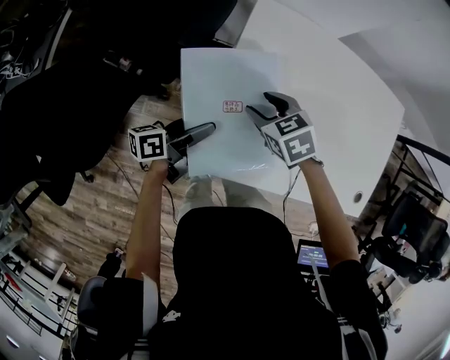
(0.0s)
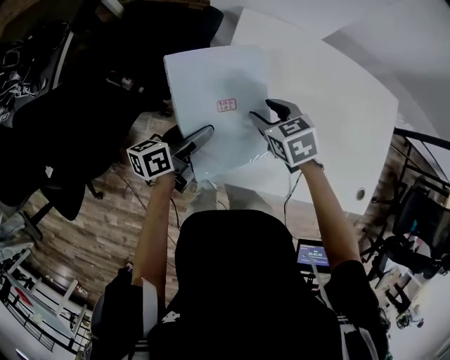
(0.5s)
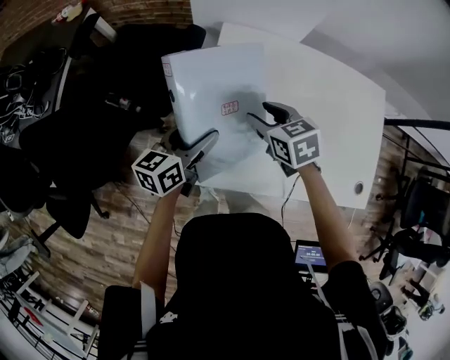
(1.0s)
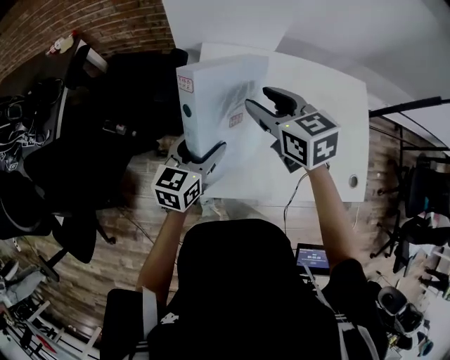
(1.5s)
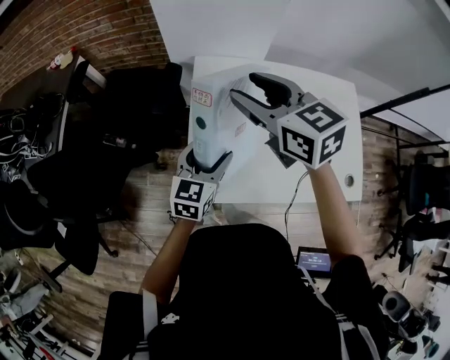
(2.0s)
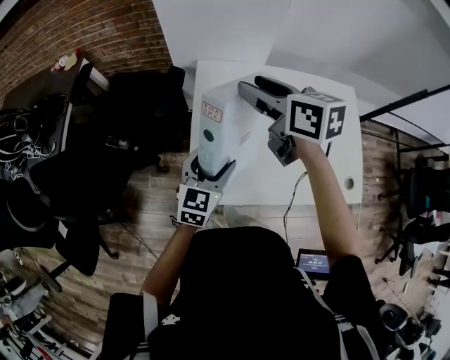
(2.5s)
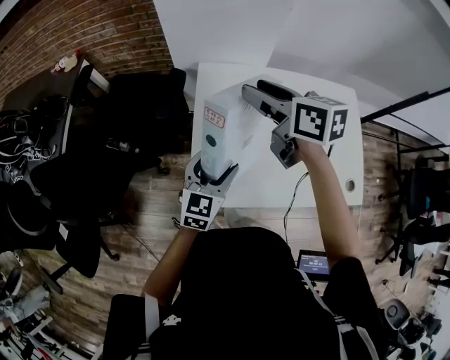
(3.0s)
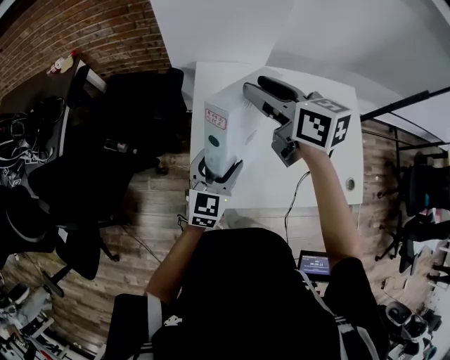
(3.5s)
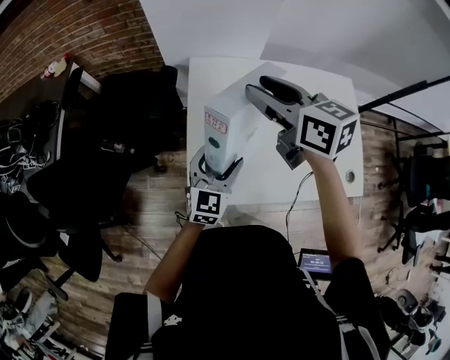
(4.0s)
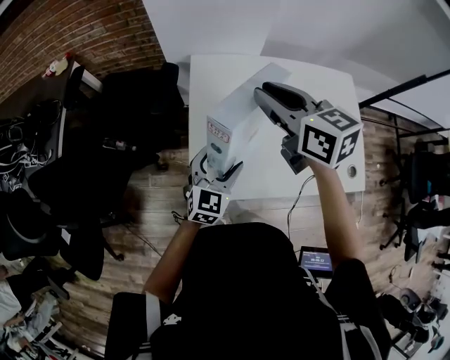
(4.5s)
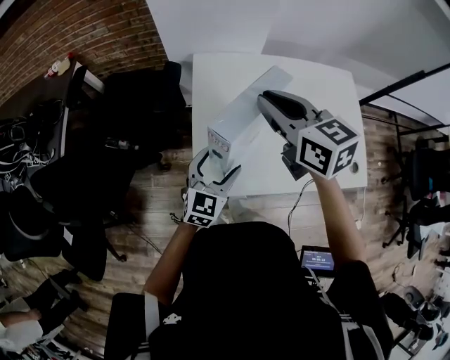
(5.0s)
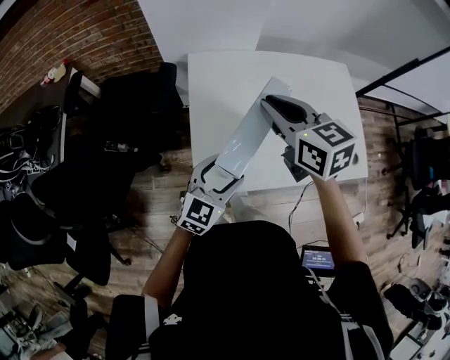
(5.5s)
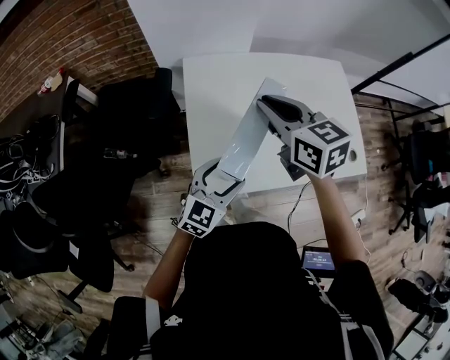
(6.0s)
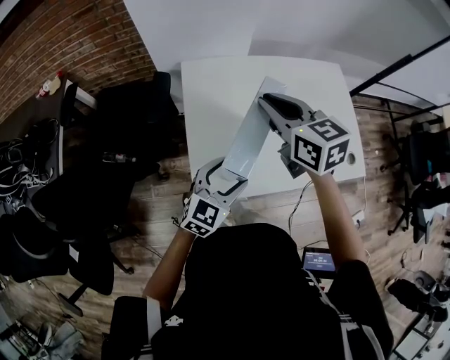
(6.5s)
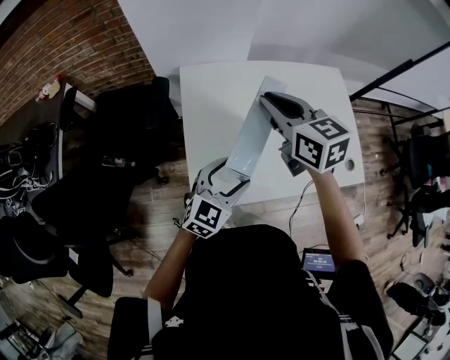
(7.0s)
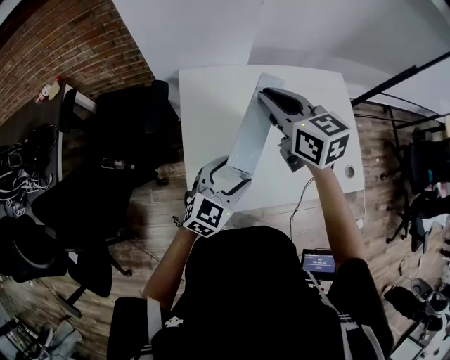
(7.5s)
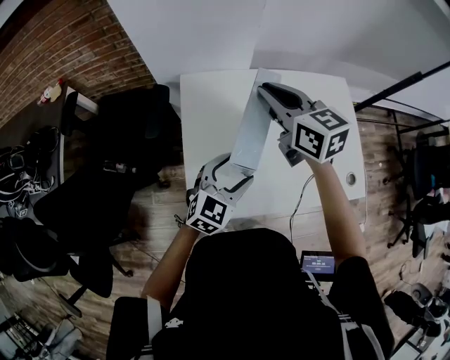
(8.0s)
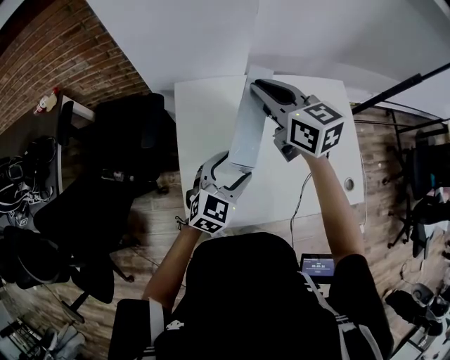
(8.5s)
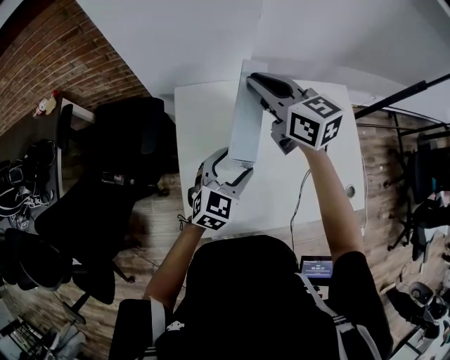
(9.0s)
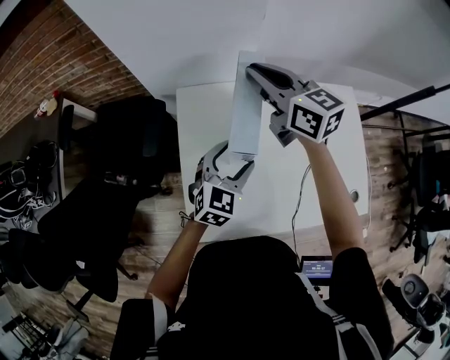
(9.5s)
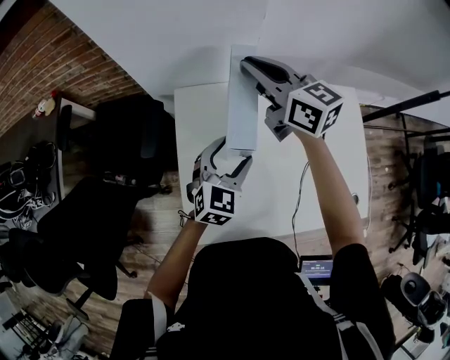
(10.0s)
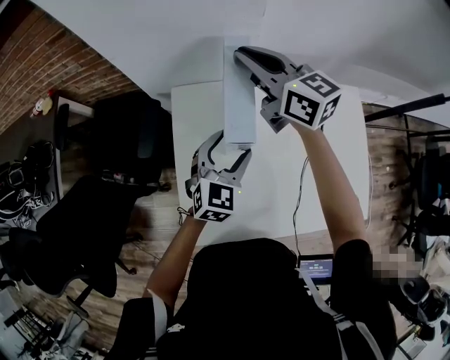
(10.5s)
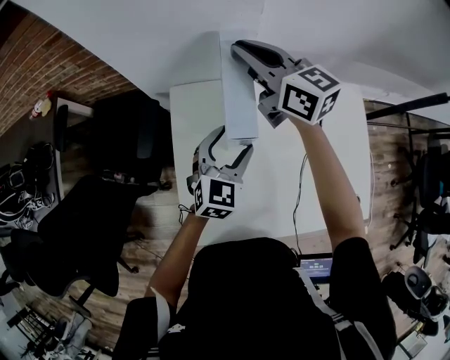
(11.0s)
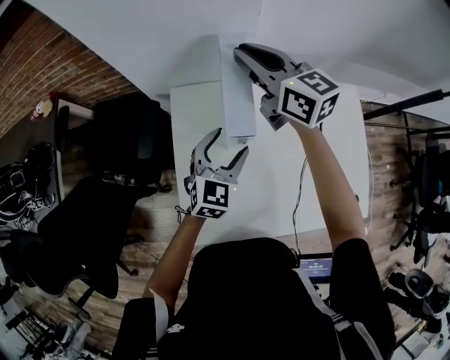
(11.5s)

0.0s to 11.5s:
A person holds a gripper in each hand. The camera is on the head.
0.0s to 2.0s: The left gripper is displaced upward and to the right by roughly 20 cm, and rotates around the line of its fingers by approximately 60 degrees, clockwise from behind. The right gripper shifts some 30 cm upward, and tilts its fingers some 40 degrees upward.
4.0s to 6.0s: The grippers both shift backward by approximately 10 cm. The left gripper swivels approximately 20 degrees; the right gripper closes its fingers.
6.0s to 7.5s: Both grippers move forward, approximately 10 cm.
7.5s to 9.5s: The two grippers go about 15 cm forward.
9.5s to 11.5s: Both grippers move forward, some 5 cm.

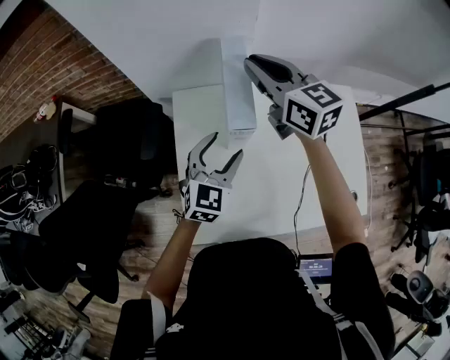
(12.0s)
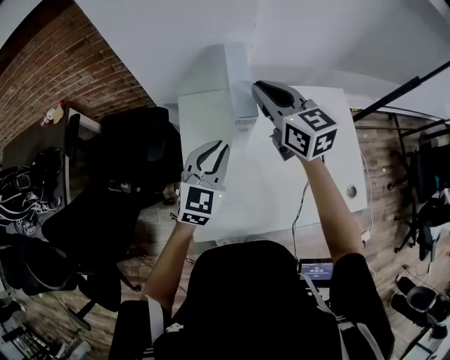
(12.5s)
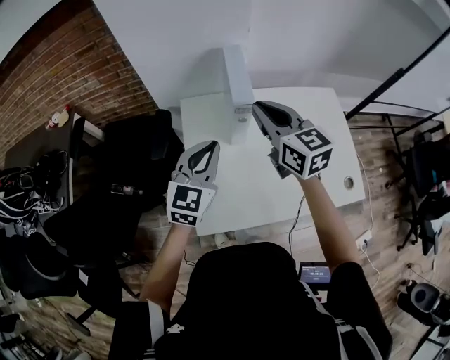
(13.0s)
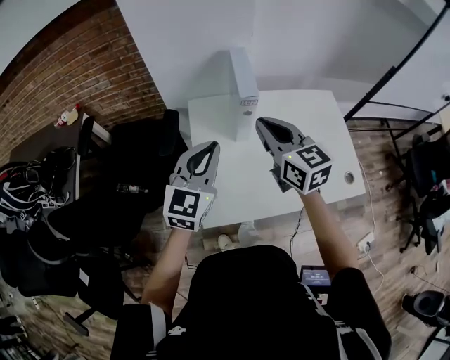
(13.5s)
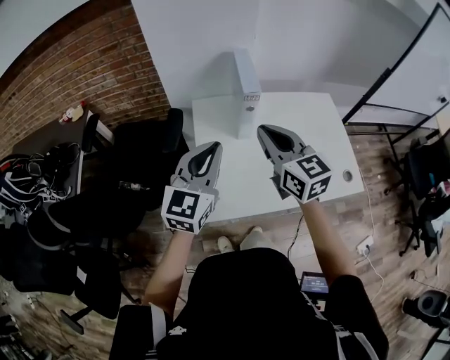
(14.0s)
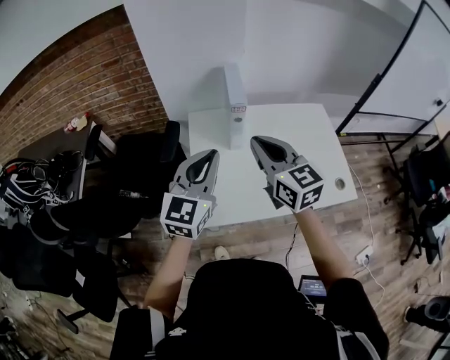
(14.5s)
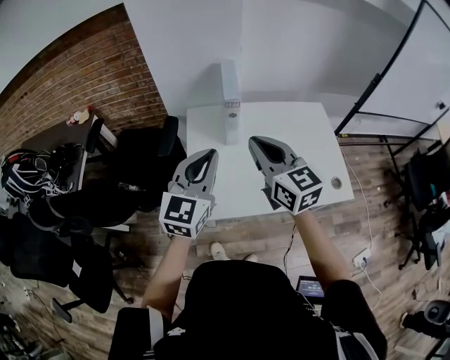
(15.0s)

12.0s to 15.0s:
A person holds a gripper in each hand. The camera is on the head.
12.0s to 13.5s: The right gripper heads backward, covering some 25 cm; the left gripper heads backward, upward and to the left, covering approximately 25 cm, and closes its fingers.
13.5s to 15.0s: The left gripper is displaced backward and upward by approximately 10 cm; the right gripper moves backward, about 10 cm.

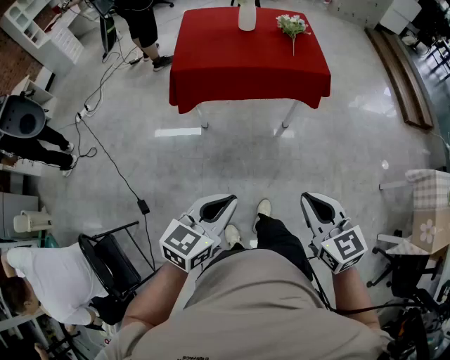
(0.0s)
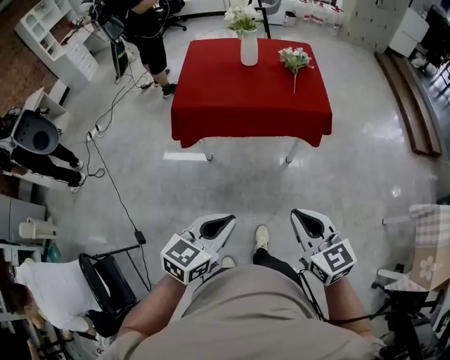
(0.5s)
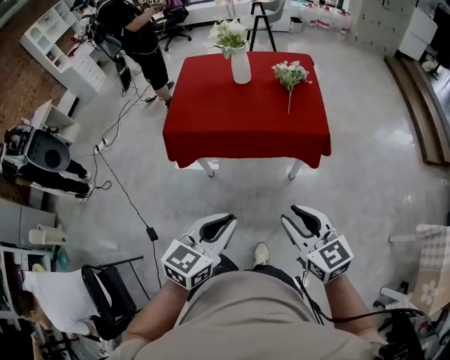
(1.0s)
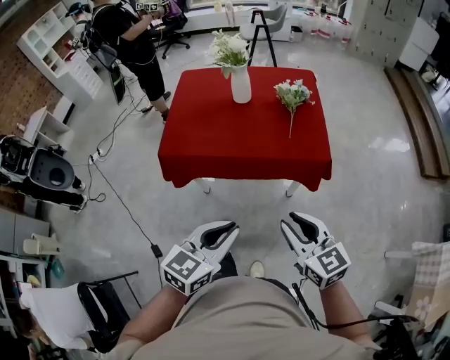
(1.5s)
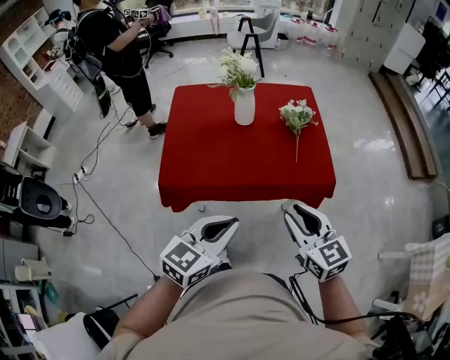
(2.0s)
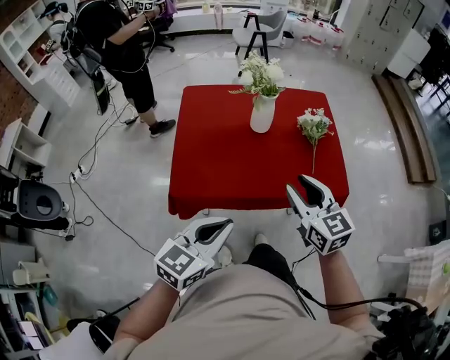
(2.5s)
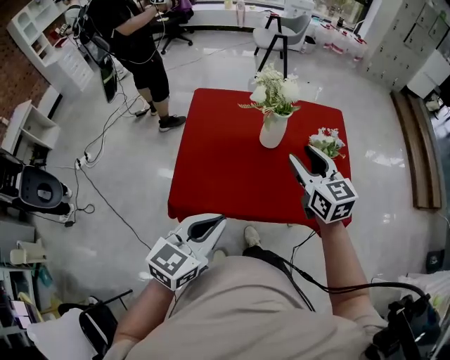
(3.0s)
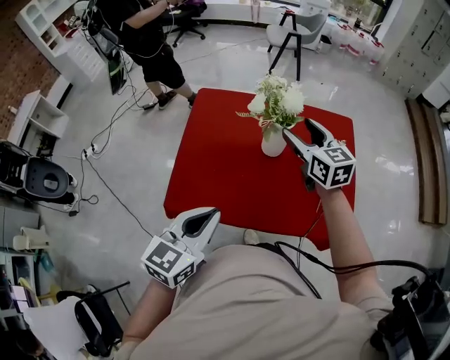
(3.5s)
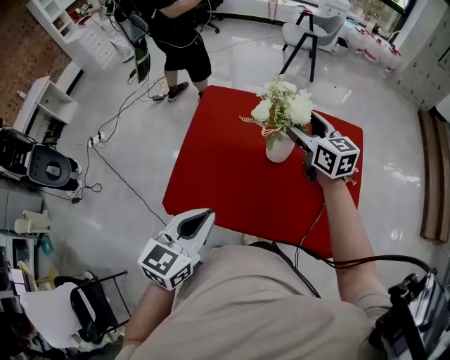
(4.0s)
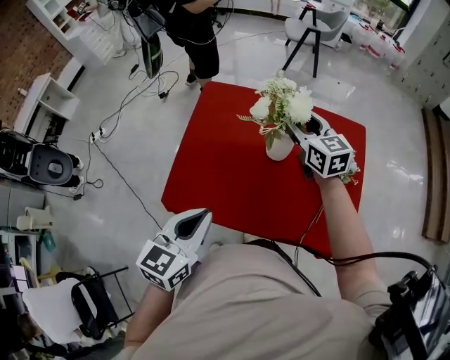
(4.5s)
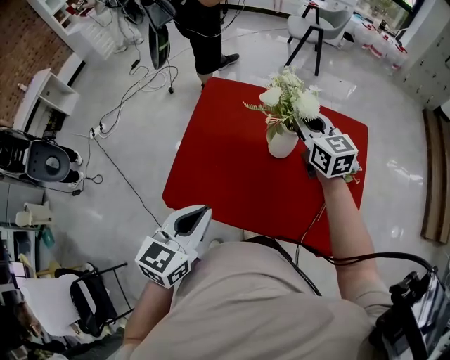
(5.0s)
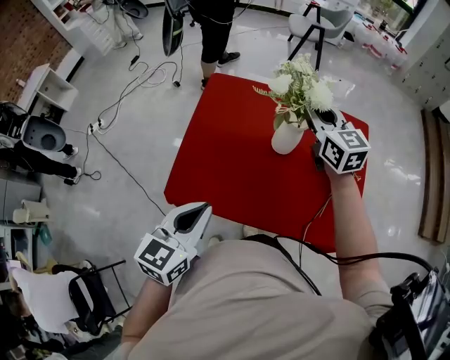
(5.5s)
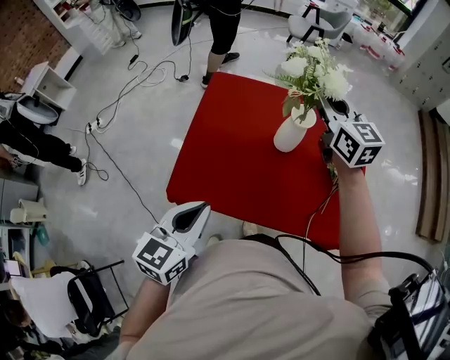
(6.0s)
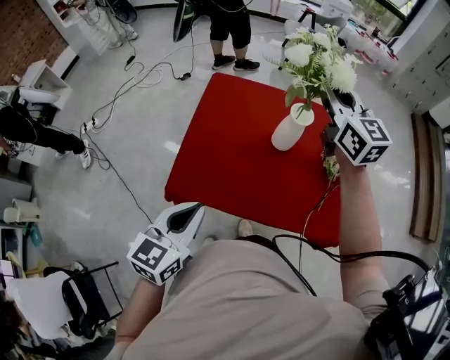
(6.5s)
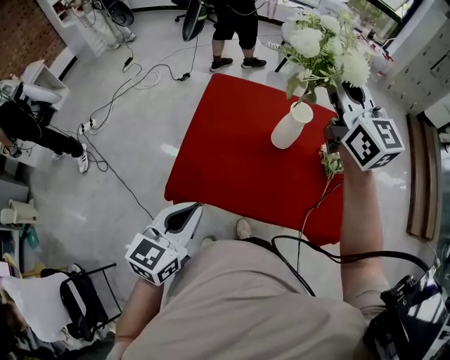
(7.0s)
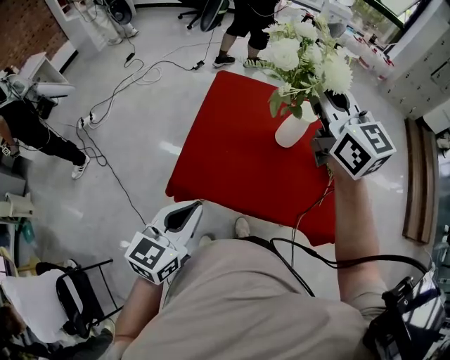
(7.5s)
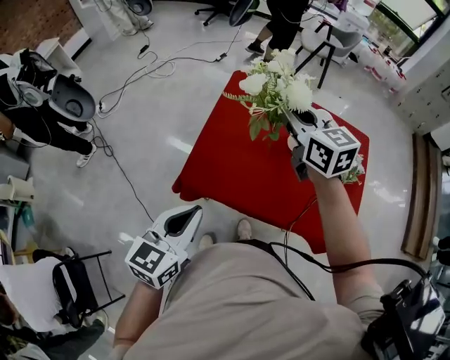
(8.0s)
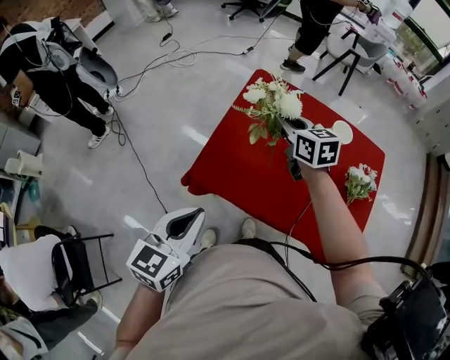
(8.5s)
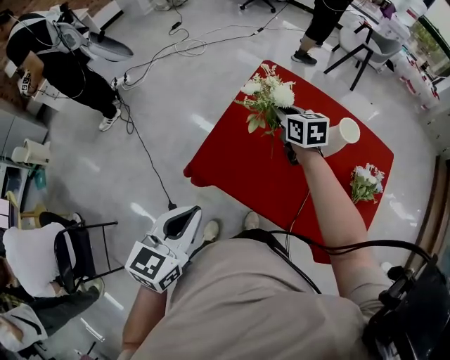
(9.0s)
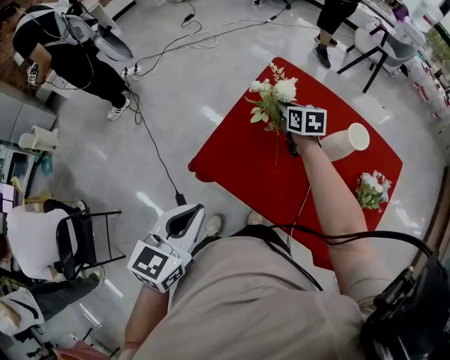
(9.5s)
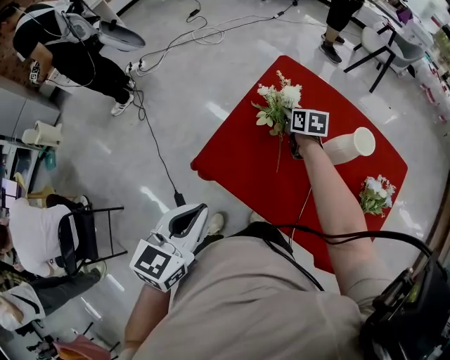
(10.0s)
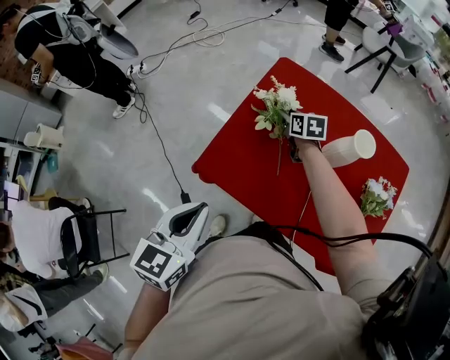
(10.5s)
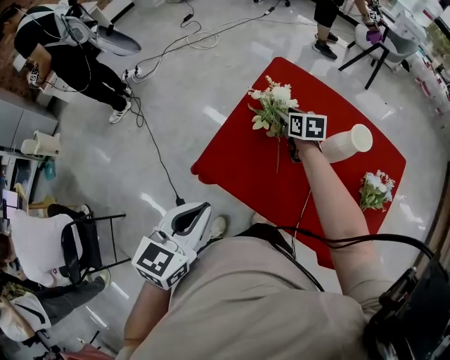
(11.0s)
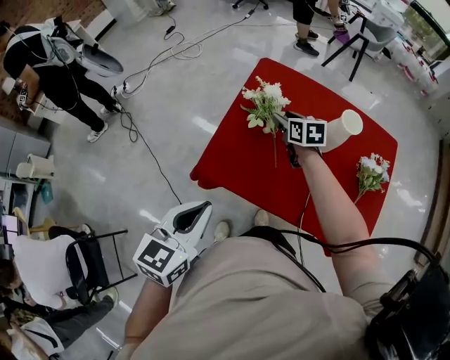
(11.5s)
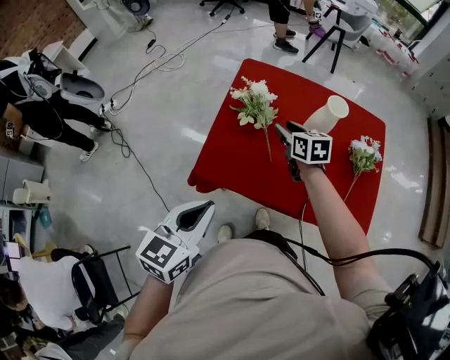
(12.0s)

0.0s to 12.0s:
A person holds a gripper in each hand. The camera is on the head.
0.0s to 2.0s: The pair of grippers is taken forward, roughly 40 cm.
2.0s to 4.0s: The right gripper moves forward, about 50 cm, and opens its fingers. The left gripper travels forward and to the left by some 25 cm, and turns by about 30 degrees.
4.0s to 6.0s: The right gripper heads upward, covering approximately 10 cm, and closes up.
6.0s to 8.0s: The right gripper is displaced to the left and backward by approximately 20 cm. The left gripper heads to the left and backward, covering roughly 10 cm.
8.0s to 10.0s: The right gripper travels downward and forward by approximately 35 cm, and turns by roughly 30 degrees.
10.0s to 12.0s: The right gripper goes approximately 15 cm backward and upward.
